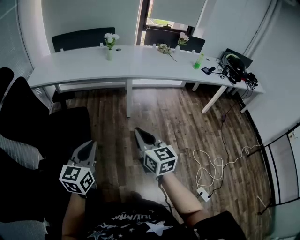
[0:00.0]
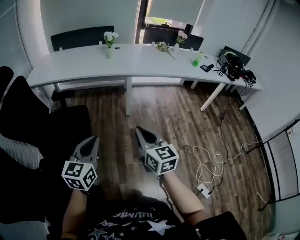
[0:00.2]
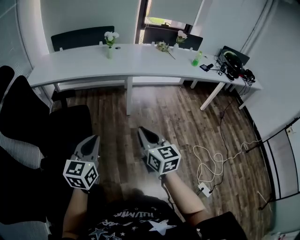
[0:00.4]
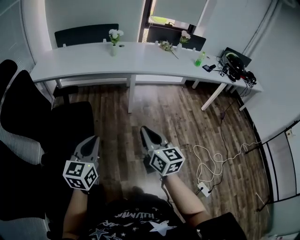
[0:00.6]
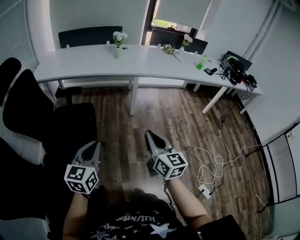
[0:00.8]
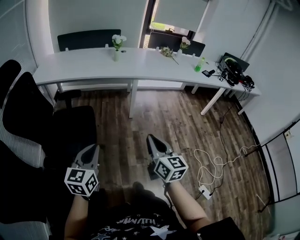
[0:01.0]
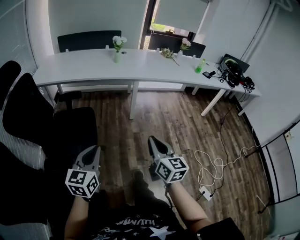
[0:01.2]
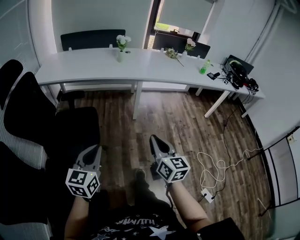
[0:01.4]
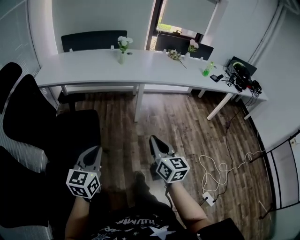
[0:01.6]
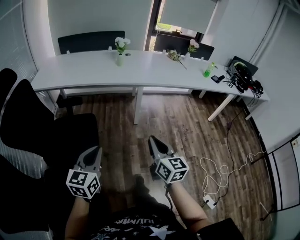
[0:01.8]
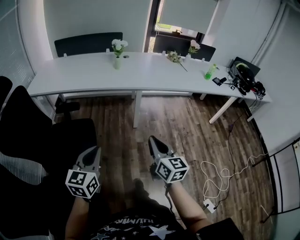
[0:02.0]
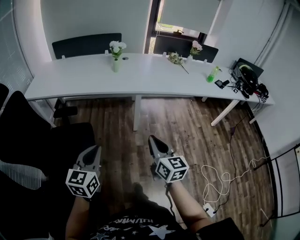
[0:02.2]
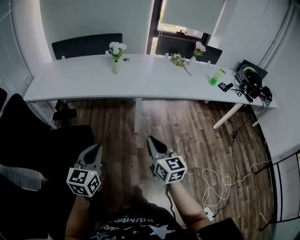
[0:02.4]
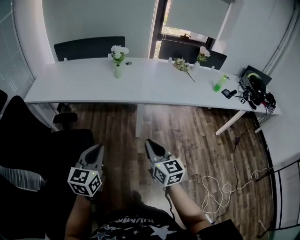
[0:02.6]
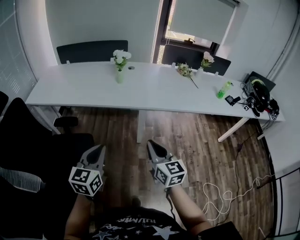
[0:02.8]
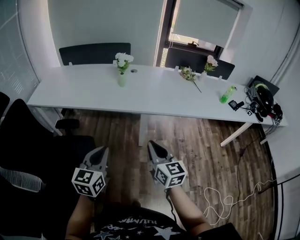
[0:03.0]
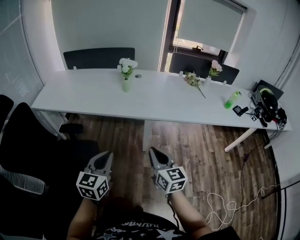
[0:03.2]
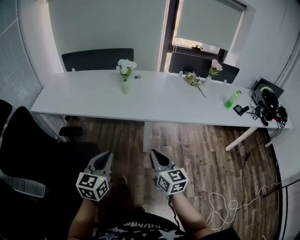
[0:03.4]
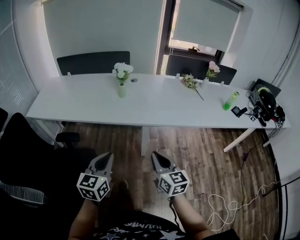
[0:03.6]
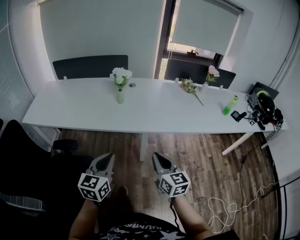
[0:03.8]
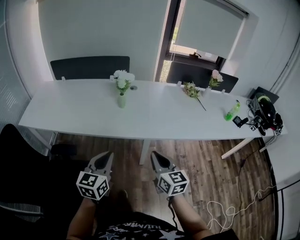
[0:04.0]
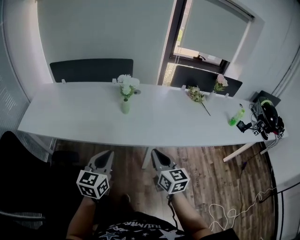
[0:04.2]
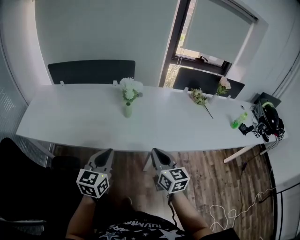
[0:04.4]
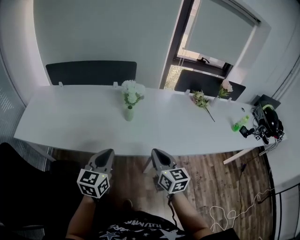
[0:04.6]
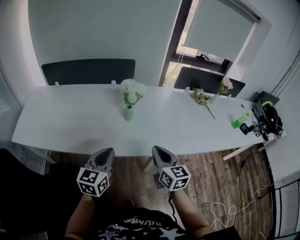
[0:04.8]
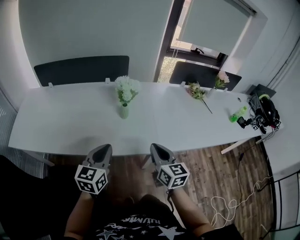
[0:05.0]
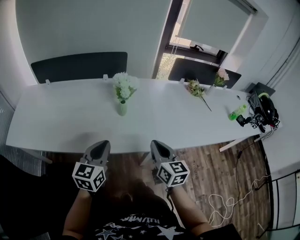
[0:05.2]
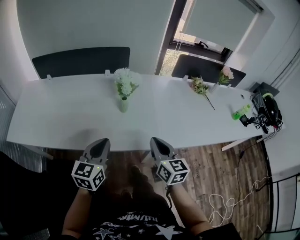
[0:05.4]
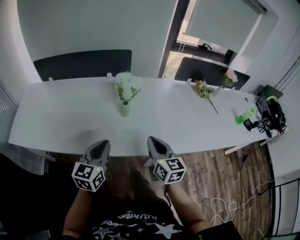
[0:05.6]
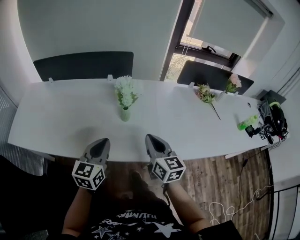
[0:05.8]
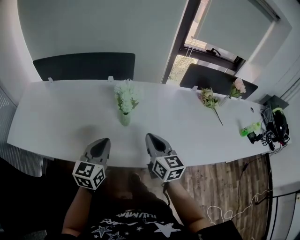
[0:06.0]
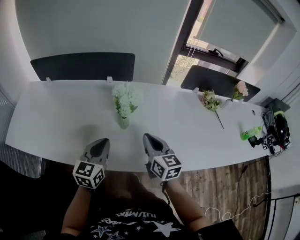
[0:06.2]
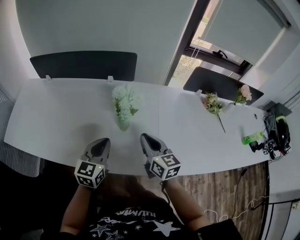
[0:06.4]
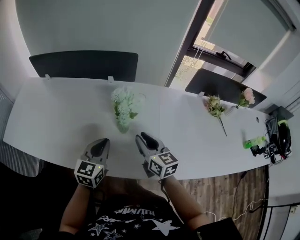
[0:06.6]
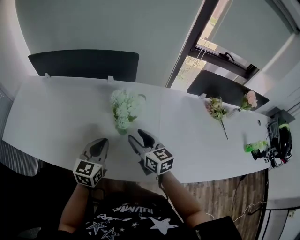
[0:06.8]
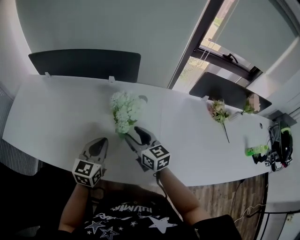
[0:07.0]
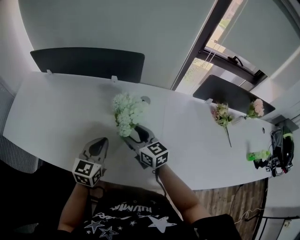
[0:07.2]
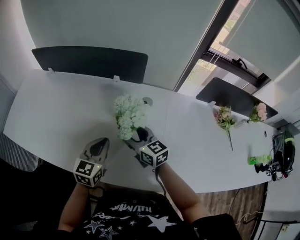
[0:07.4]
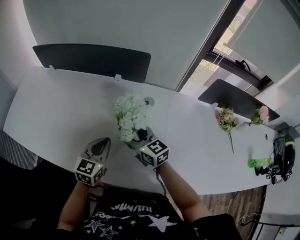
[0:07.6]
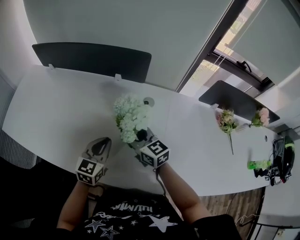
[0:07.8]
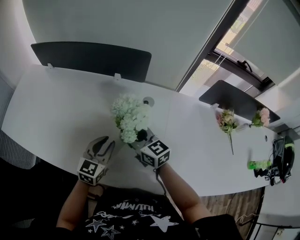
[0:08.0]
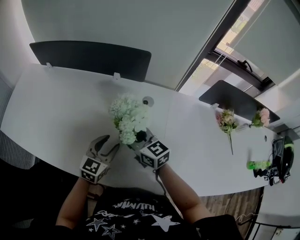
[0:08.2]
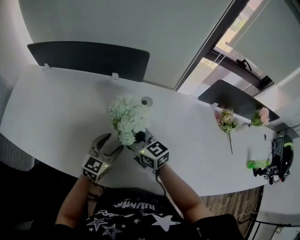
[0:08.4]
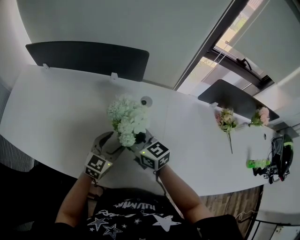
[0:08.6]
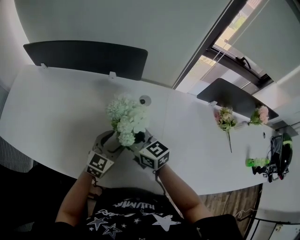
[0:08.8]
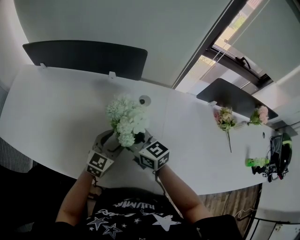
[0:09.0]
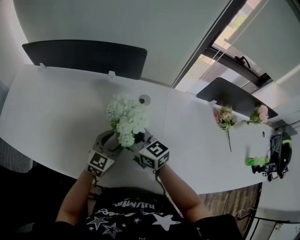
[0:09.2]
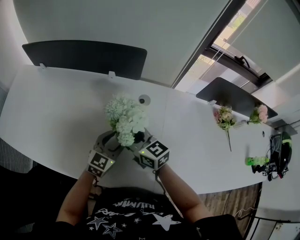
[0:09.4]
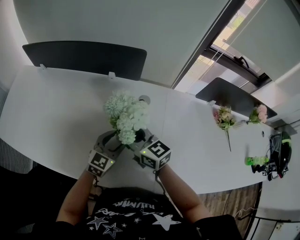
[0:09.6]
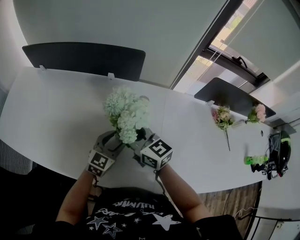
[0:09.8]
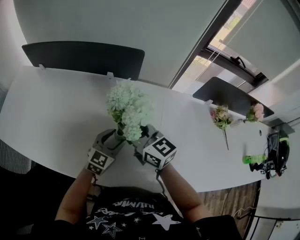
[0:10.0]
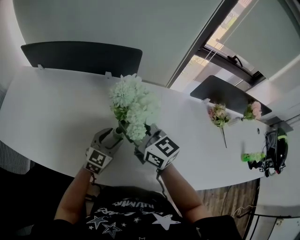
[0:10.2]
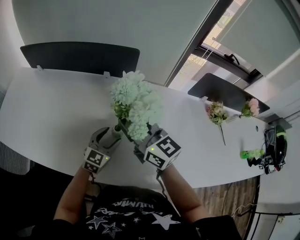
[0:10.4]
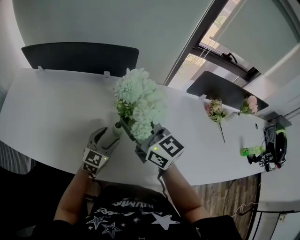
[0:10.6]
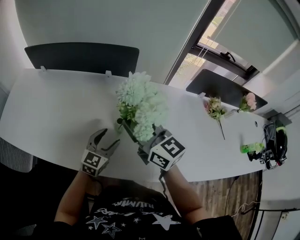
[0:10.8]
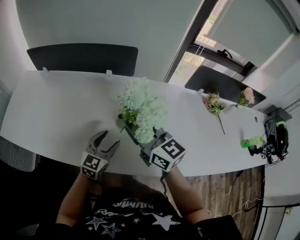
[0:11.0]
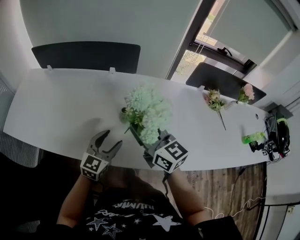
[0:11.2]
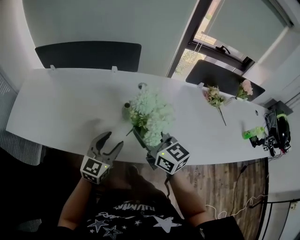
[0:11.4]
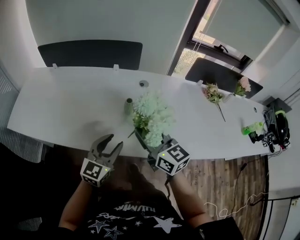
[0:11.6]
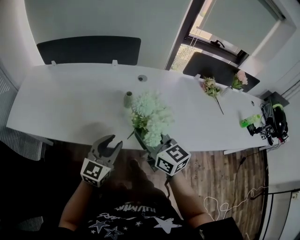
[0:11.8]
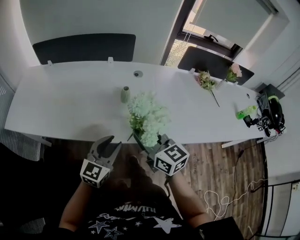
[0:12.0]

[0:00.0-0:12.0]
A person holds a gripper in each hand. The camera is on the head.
0.0 to 1.6 s: The left gripper shifts approximately 10 cm to the left.
1.6 to 3.0 s: The right gripper heads forward, covering some 30 cm. Meanwhile the left gripper goes some 30 cm forward and to the right.
3.0 to 4.4 s: Both grippers travel together forward, roughly 25 cm.
4.4 to 6.0 s: Both grippers move forward, about 20 cm.
6.0 to 7.6 s: The right gripper is displaced forward, to the left and downward by about 20 cm, rotates approximately 30 degrees, and opens up. The left gripper shifts some 15 cm forward and downward.
7.6 to 9.0 s: The right gripper closes; the left gripper moves to the right and downward, some 10 cm, and opens up.
9.0 to 10.4 s: The right gripper is displaced upward by roughly 10 cm.
10.4 to 12.0 s: The left gripper moves backward and upward, approximately 25 cm, and closes. The right gripper goes about 25 cm backward.

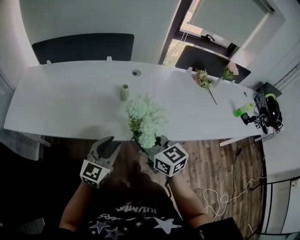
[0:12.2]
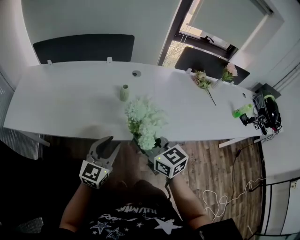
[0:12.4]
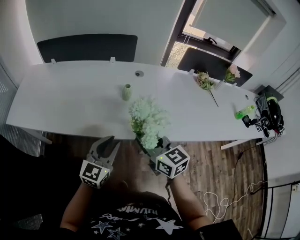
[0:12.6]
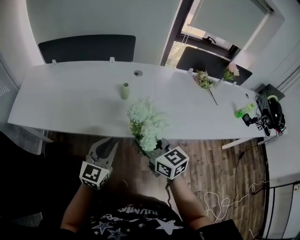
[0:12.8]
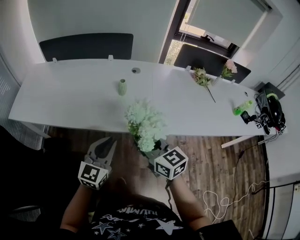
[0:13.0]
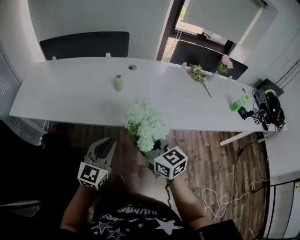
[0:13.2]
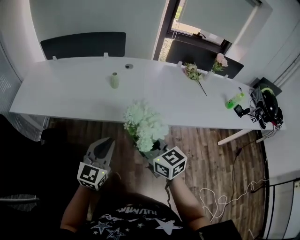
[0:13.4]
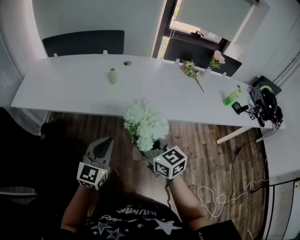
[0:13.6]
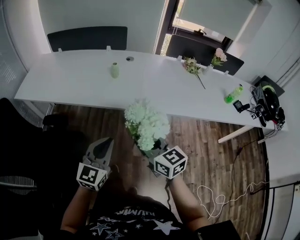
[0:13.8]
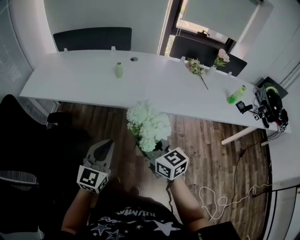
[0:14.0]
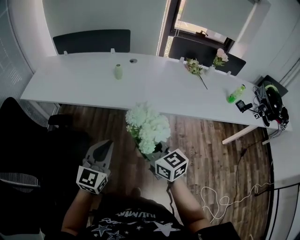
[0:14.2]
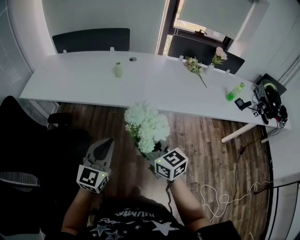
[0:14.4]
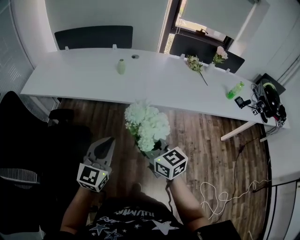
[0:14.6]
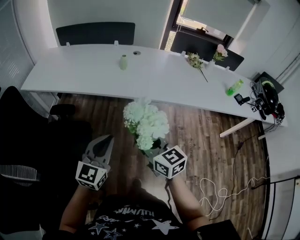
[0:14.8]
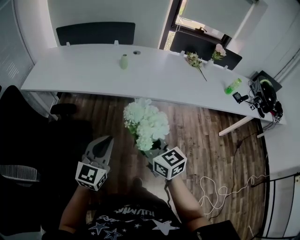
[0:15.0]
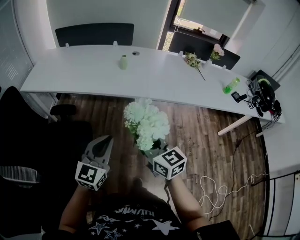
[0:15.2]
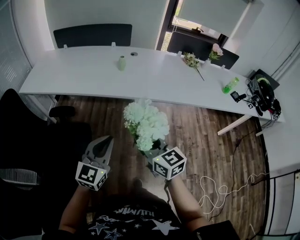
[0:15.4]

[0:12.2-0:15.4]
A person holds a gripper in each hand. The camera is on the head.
12.2 to 13.8 s: The left gripper moves backward, approximately 25 cm, and closes, while the right gripper shifts roughly 25 cm backward and to the right.
13.8 to 15.4 s: Both grippers travel together to the left and backward, some 10 cm.

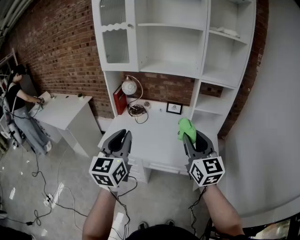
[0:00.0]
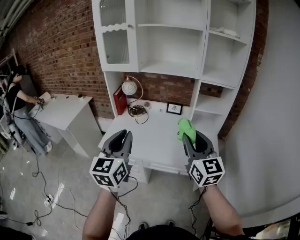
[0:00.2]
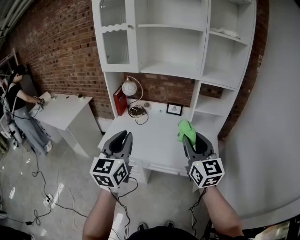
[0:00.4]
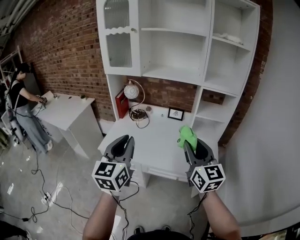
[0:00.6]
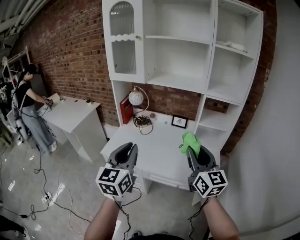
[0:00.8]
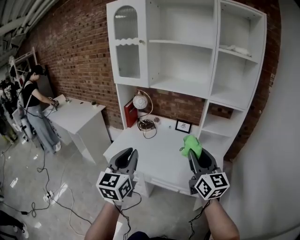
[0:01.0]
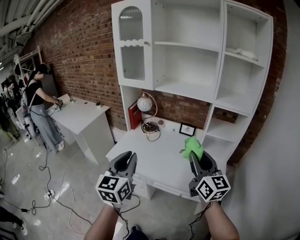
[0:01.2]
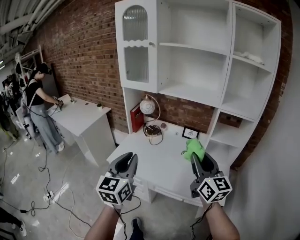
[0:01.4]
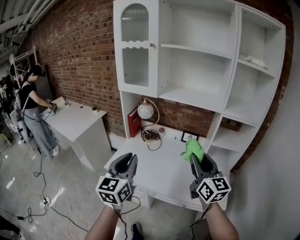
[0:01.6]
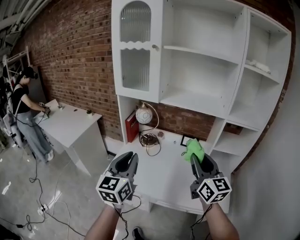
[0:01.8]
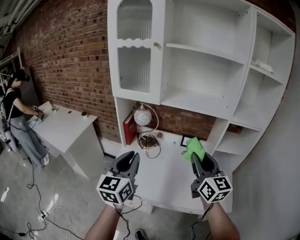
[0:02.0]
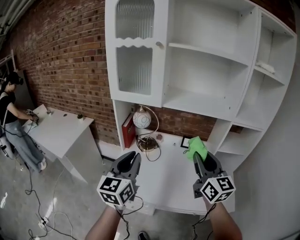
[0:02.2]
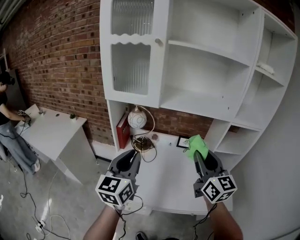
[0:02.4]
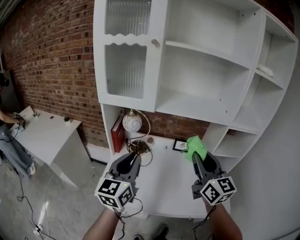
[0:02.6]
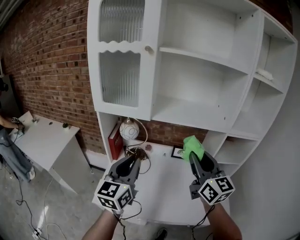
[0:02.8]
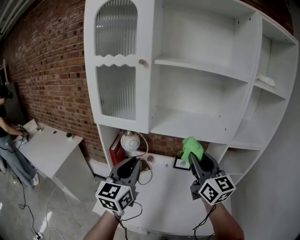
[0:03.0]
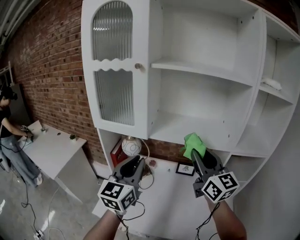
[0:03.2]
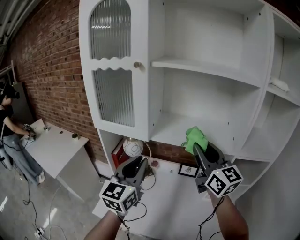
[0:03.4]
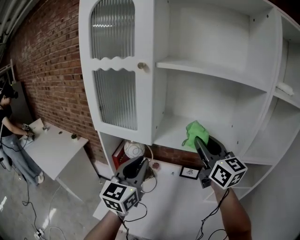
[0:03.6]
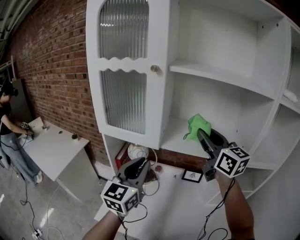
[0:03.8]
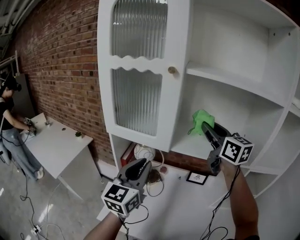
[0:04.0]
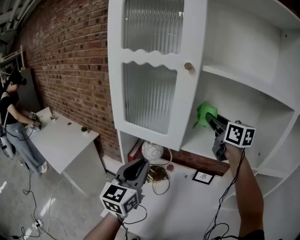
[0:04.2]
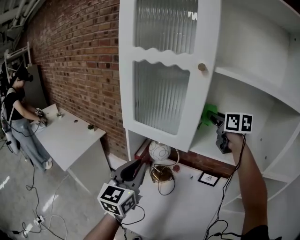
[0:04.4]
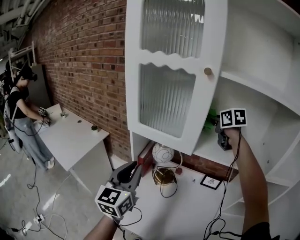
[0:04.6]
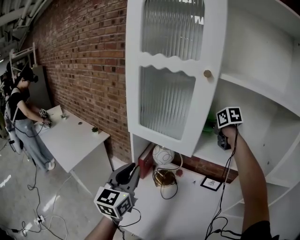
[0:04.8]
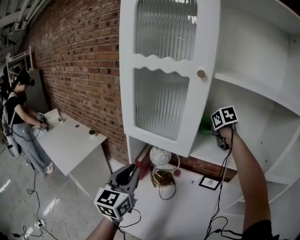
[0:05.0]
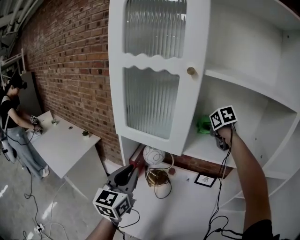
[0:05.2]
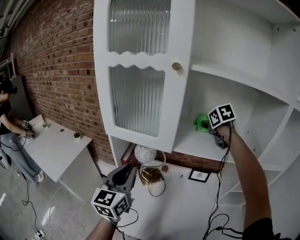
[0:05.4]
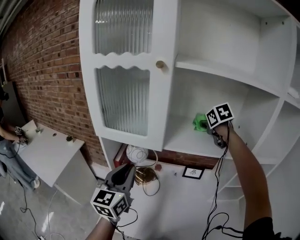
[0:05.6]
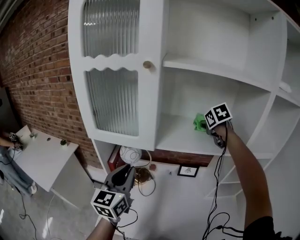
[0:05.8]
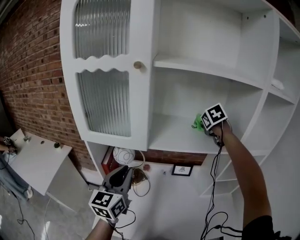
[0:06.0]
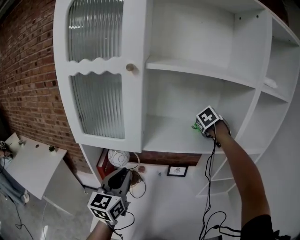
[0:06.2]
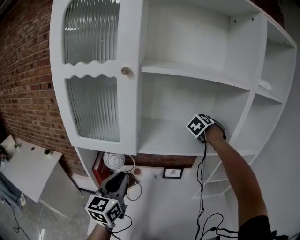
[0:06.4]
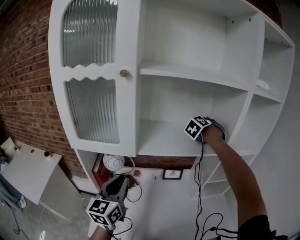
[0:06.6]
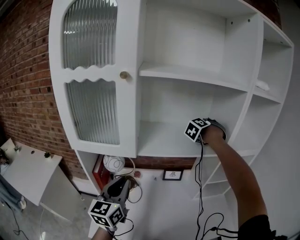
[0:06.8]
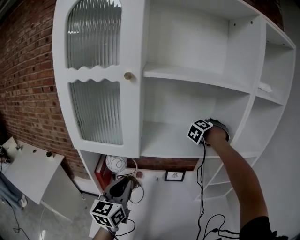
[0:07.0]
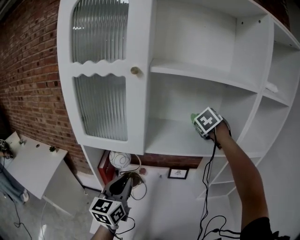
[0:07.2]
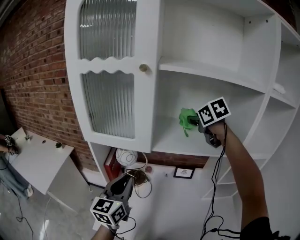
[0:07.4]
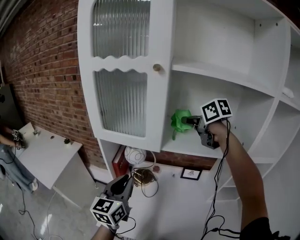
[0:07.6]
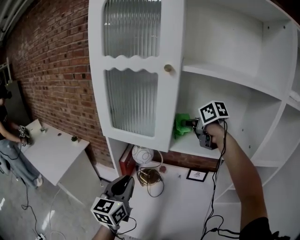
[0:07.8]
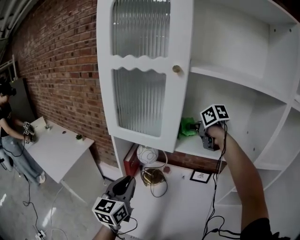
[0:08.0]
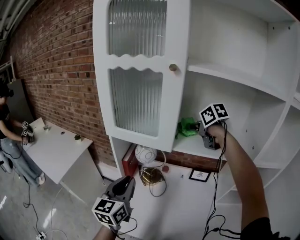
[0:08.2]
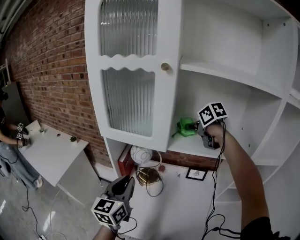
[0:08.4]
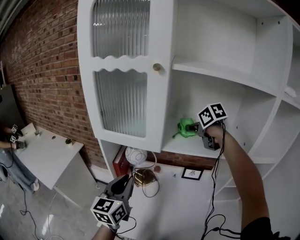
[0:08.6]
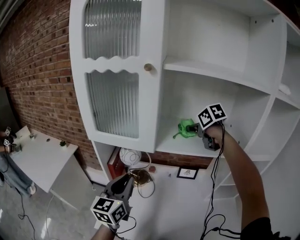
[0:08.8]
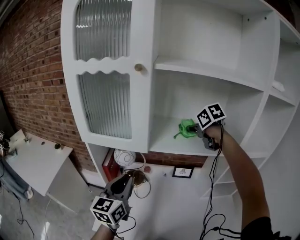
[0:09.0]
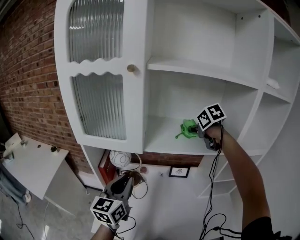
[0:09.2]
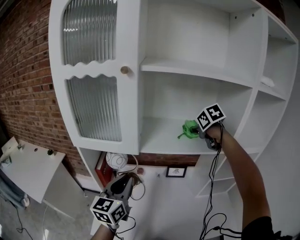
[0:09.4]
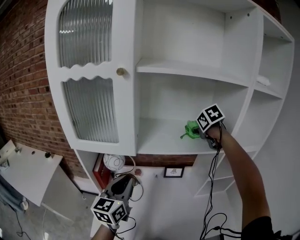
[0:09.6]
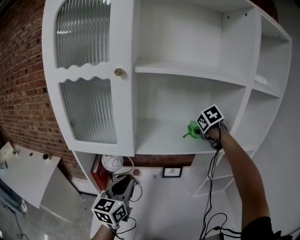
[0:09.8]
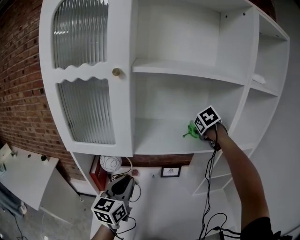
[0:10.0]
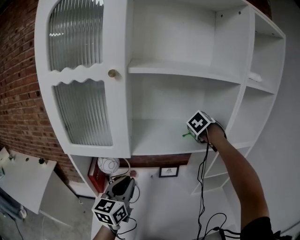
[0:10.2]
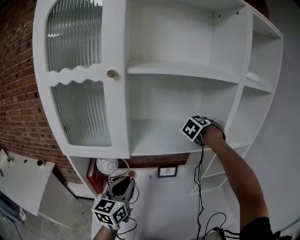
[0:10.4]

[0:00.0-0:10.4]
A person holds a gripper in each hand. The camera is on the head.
0.0 to 1.4 s: The right gripper heads forward, covering roughly 10 cm.
1.4 to 3.0 s: Both grippers travel together forward, roughly 30 cm.
3.0 to 4.4 s: The left gripper shifts about 15 cm to the left and forward, while the right gripper shifts about 30 cm forward, and rotates approximately 30 degrees.
4.4 to 6.0 s: The right gripper shifts by about 25 cm, and turns by some 50 degrees. The left gripper moves approximately 10 cm.
6.0 to 7.4 s: The right gripper ends up roughly 15 cm from where it was, and changes its angle by about 20 degrees.
7.4 to 9.0 s: The left gripper goes to the left and returns, about 5 cm each way; the right gripper shifts about 5 cm downward, and moves roughly 10 cm to the left and comes back.
9.0 to 10.4 s: The left gripper ends up roughly 5 cm from where it was. The right gripper shifts by roughly 15 cm, and swivels approximately 60 degrees.
